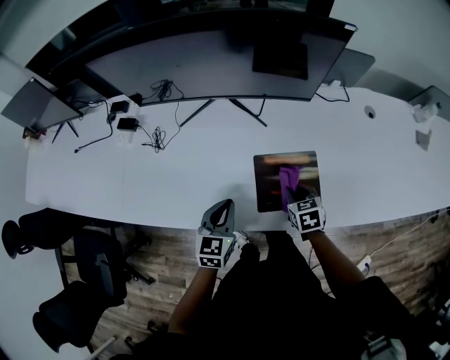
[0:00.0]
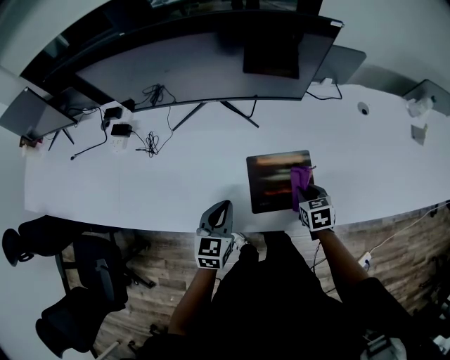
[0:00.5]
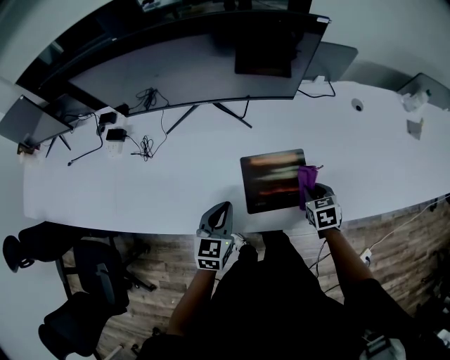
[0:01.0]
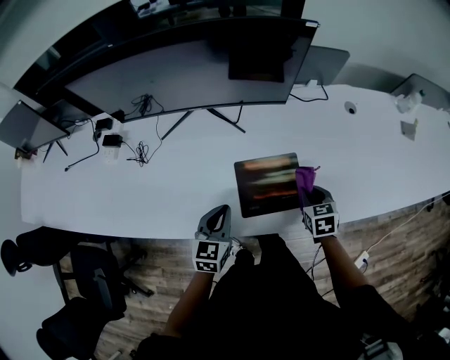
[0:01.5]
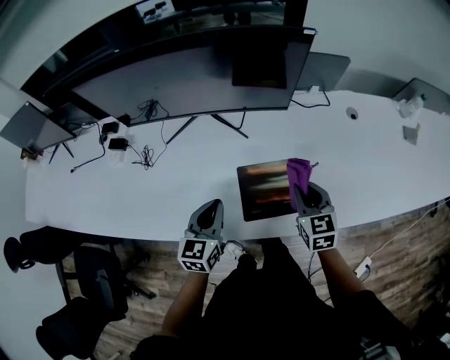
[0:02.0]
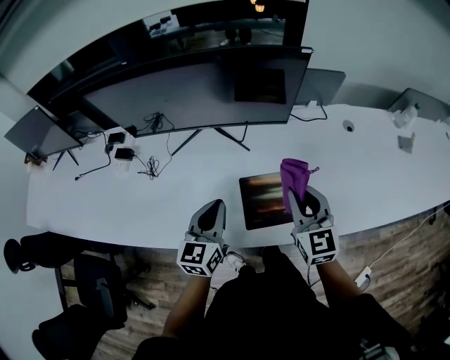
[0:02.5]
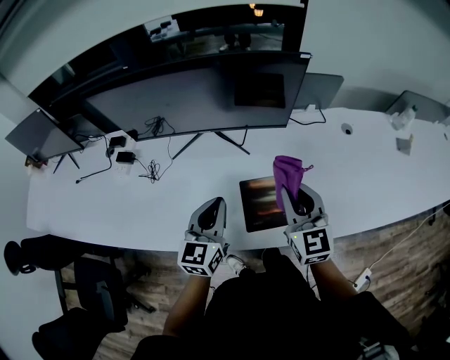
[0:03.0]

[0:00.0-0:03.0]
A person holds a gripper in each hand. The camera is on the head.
0:00.0 to 0:01.5: The right gripper heads to the right, covering about 10 cm.
0:01.5 to 0:03.0: The right gripper shifts about 25 cm upward and to the left, and points its fingers approximately 40 degrees further upward. Meanwhile the left gripper travels upward by about 15 cm.

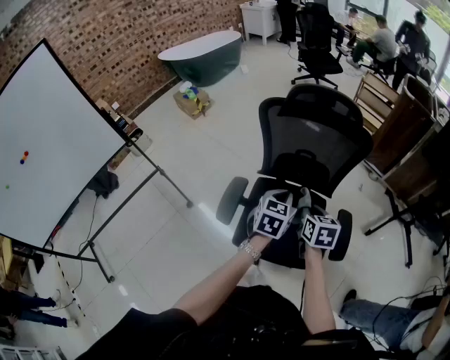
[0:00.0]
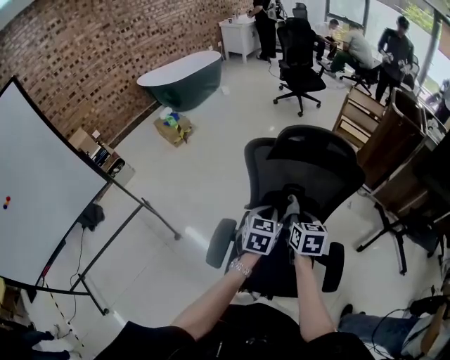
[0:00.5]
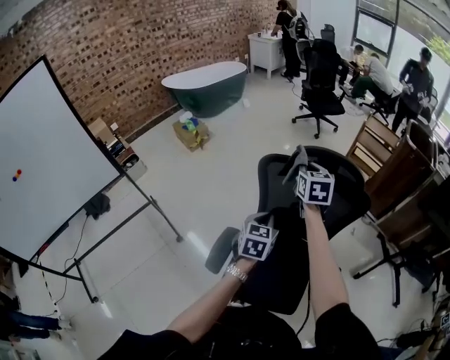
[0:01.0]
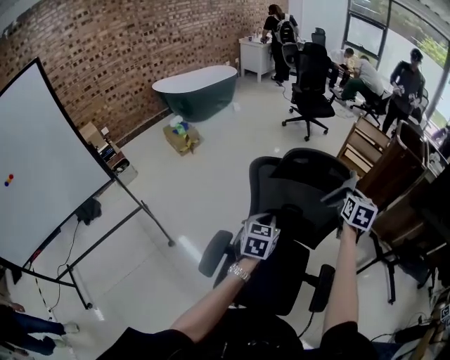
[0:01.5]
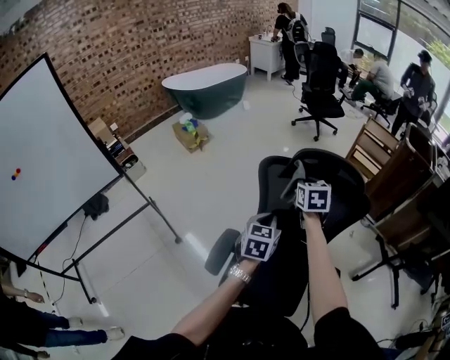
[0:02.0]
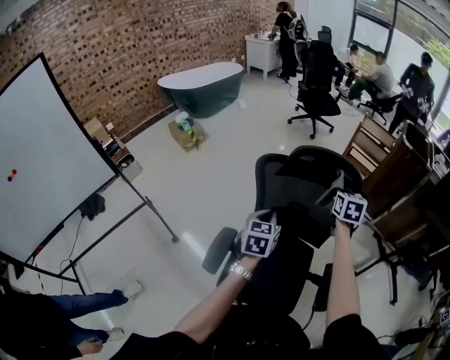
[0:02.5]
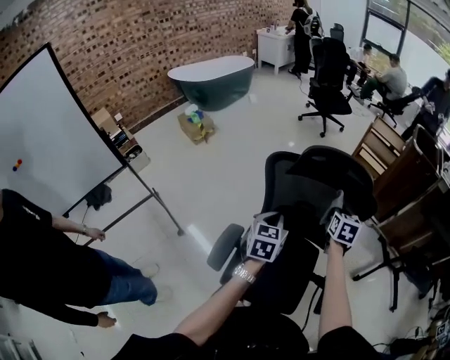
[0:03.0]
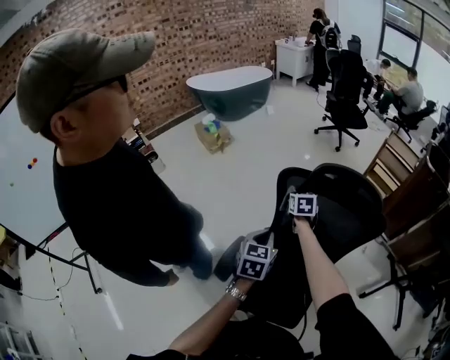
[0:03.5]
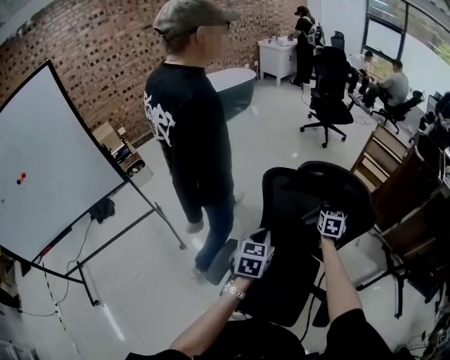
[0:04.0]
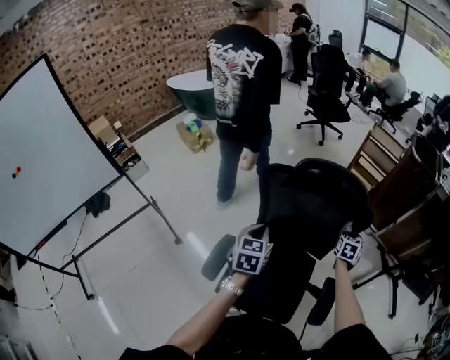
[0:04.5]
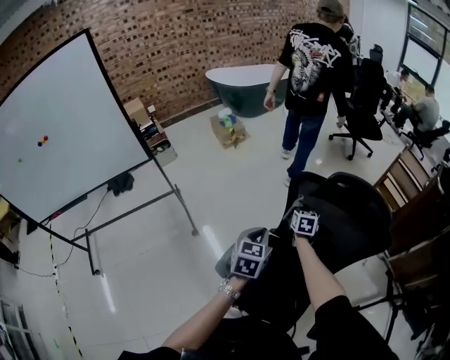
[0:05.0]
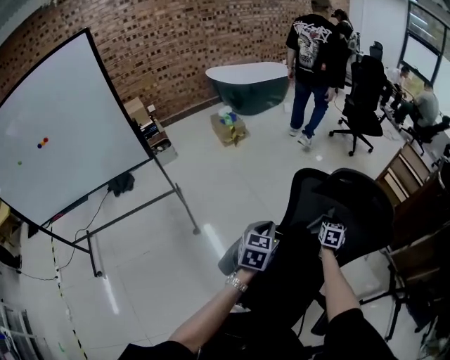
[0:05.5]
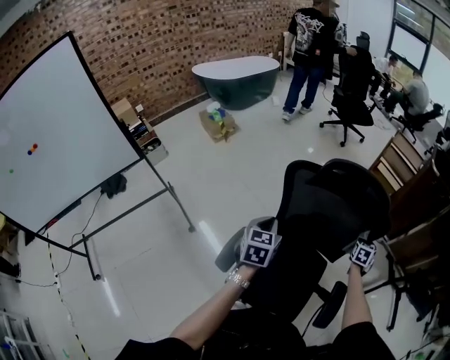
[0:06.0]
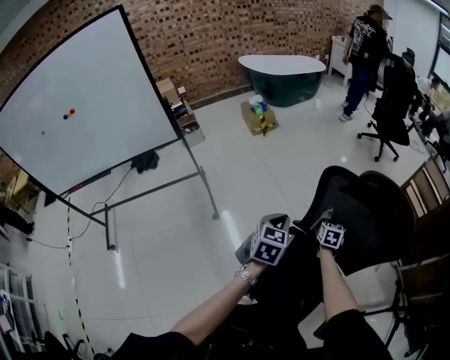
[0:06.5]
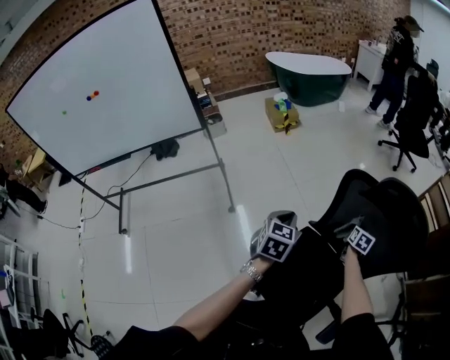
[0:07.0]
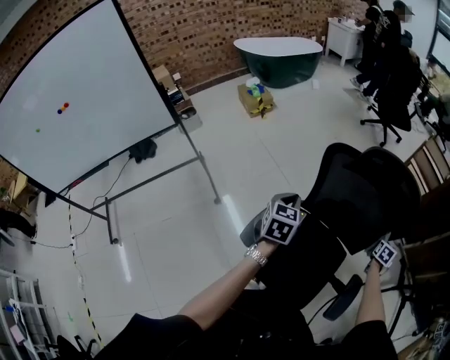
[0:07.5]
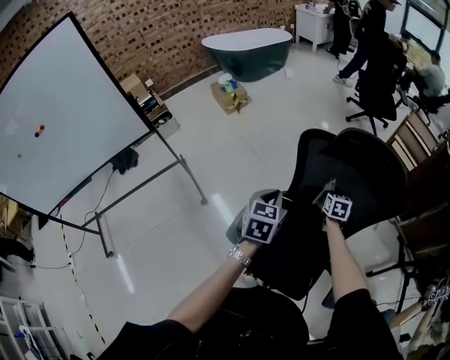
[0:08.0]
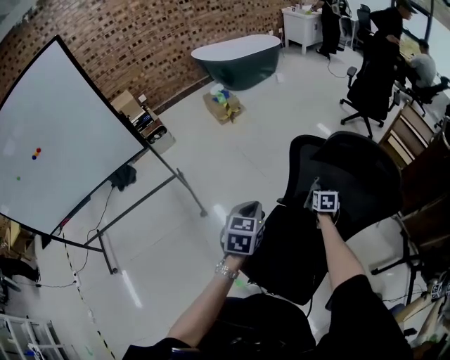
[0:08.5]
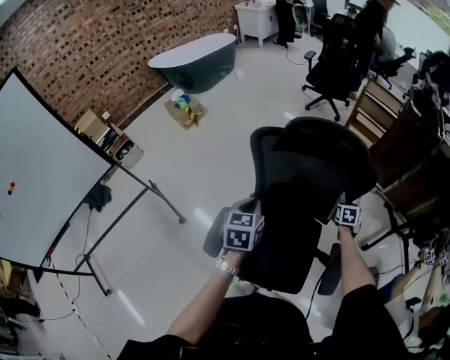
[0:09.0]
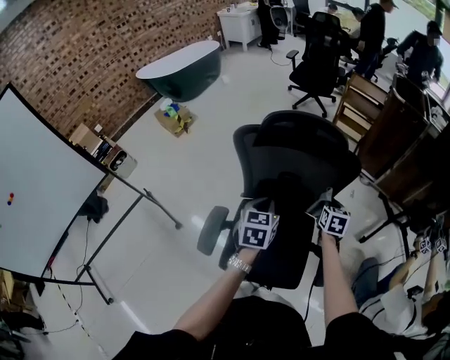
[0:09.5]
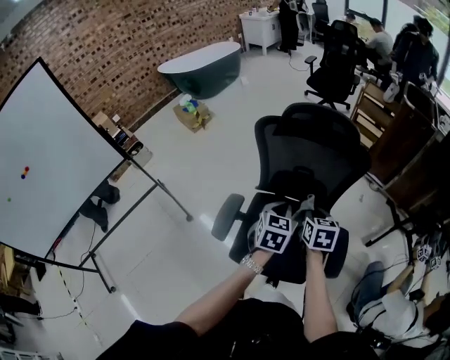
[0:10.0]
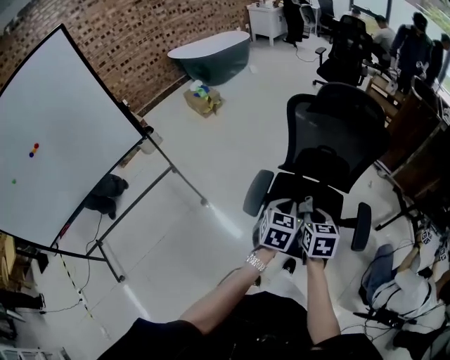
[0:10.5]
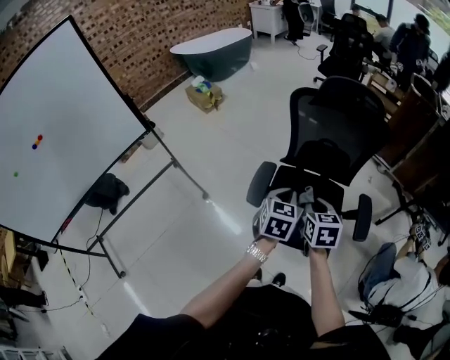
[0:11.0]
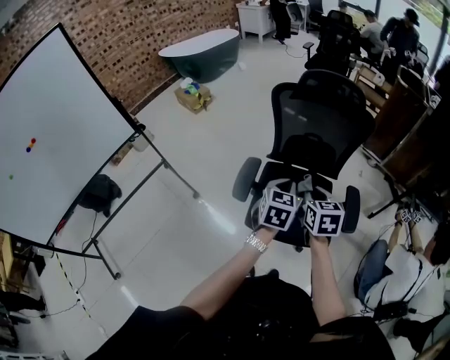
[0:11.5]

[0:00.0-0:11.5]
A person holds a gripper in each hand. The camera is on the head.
0:00.0 to 0:02.0: The left gripper heads forward and to the left, covering roughly 15 cm; the right gripper is displaced forward and upward by approximately 30 cm, and turns by roughly 20 degrees.
0:02.0 to 0:04.0: The right gripper swings left and right, about 25 cm each way, with 2 reversals.
0:04.0 to 0:06.0: The left gripper travels to the left and back again, some 5 cm each way. Meanwhile the right gripper swings left and right, some 40 cm each way, with 2 reversals.
0:07.5 to 0:09.5: The right gripper swings left and right, approximately 30 cm each way, with 2 reversals; the left gripper goes roughly 20 cm to the right.
0:09.5 to 0:11.5: The left gripper moves backward, some 20 cm, while the right gripper goes about 35 cm backward, to the left and upward.

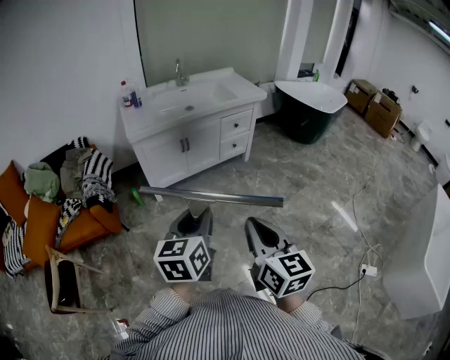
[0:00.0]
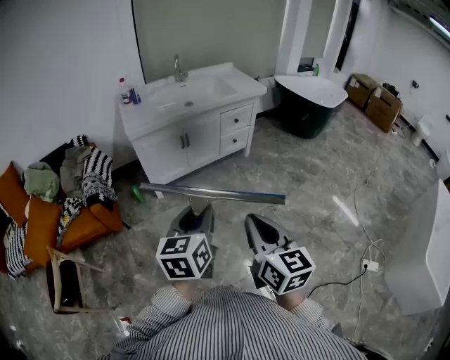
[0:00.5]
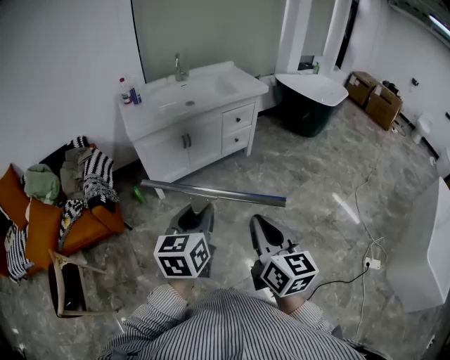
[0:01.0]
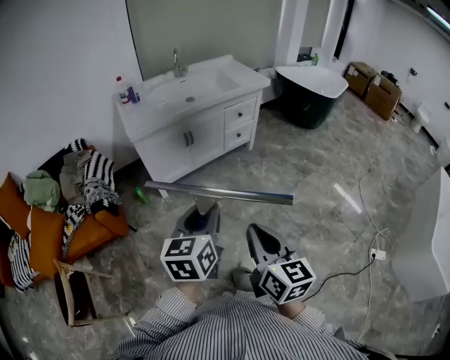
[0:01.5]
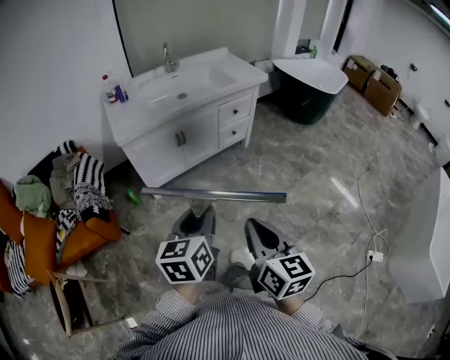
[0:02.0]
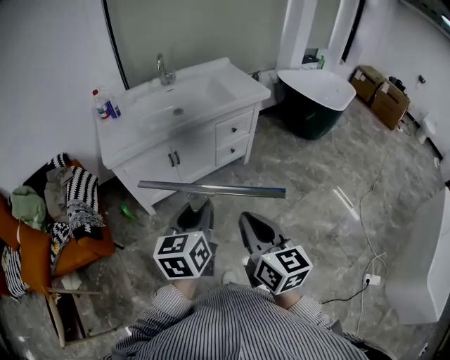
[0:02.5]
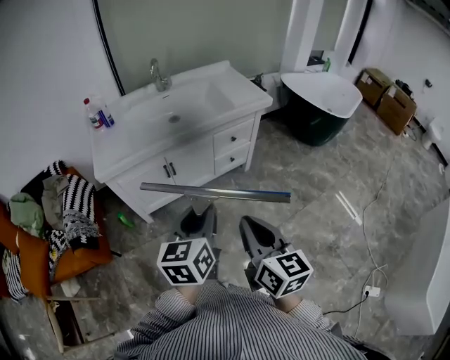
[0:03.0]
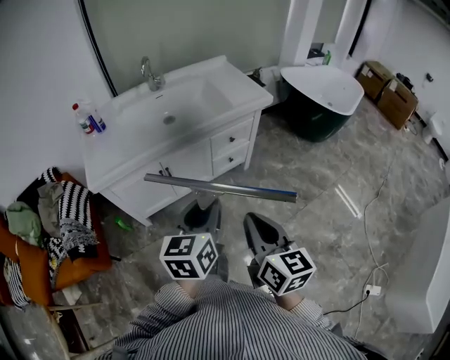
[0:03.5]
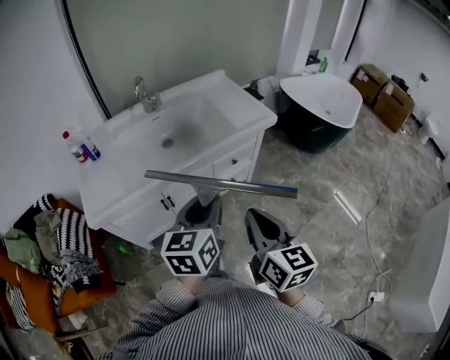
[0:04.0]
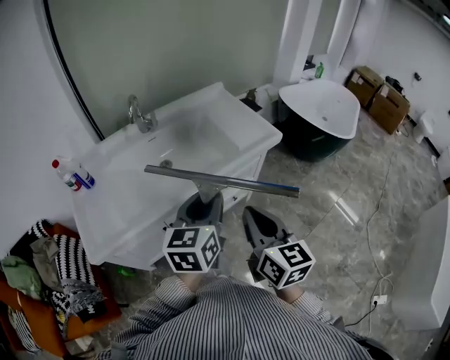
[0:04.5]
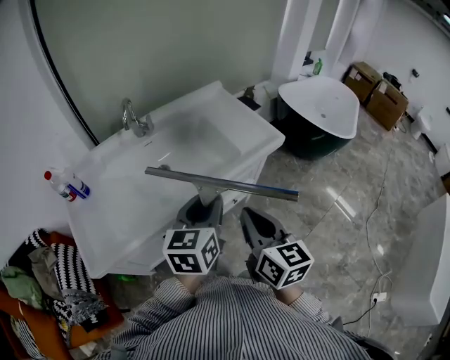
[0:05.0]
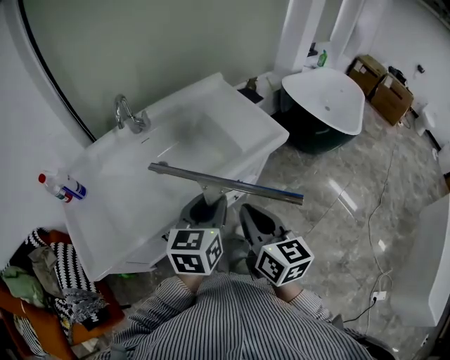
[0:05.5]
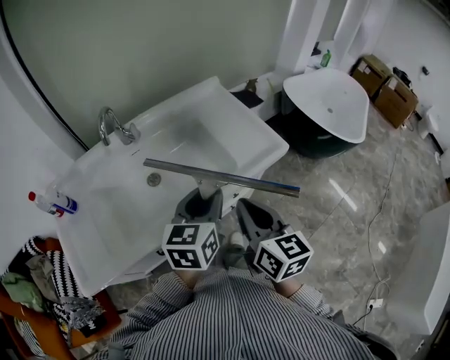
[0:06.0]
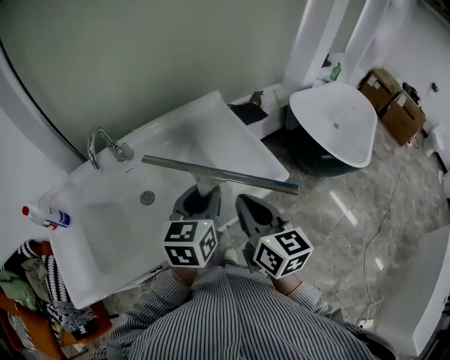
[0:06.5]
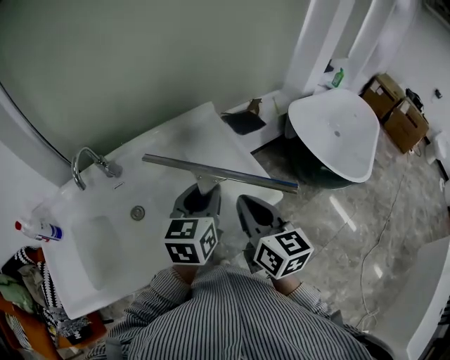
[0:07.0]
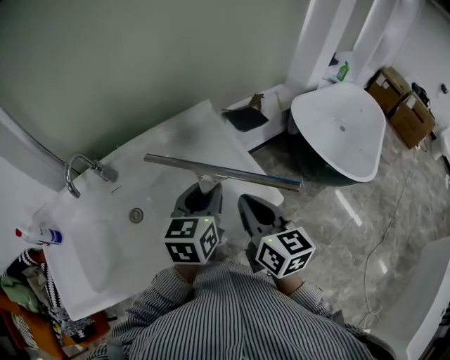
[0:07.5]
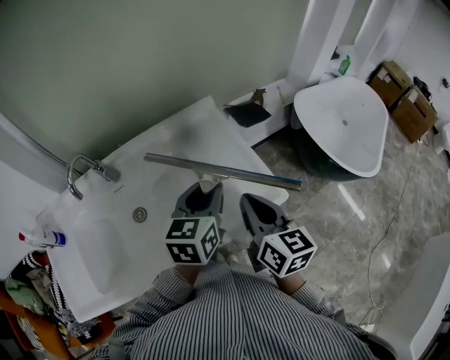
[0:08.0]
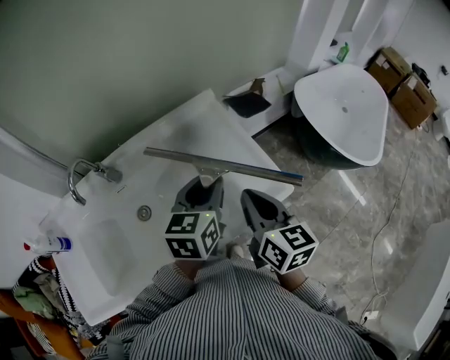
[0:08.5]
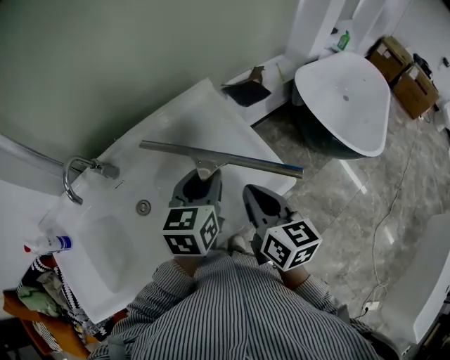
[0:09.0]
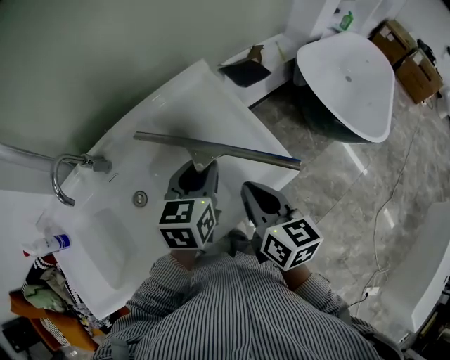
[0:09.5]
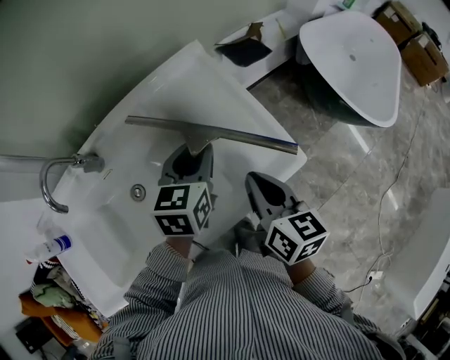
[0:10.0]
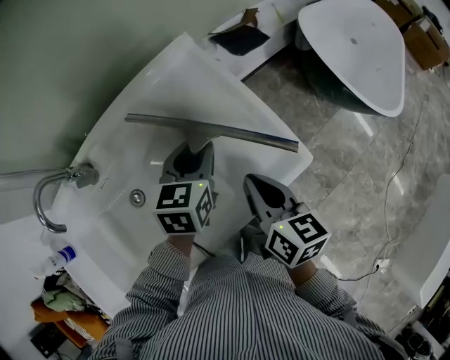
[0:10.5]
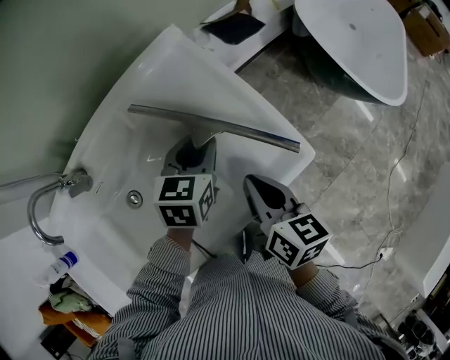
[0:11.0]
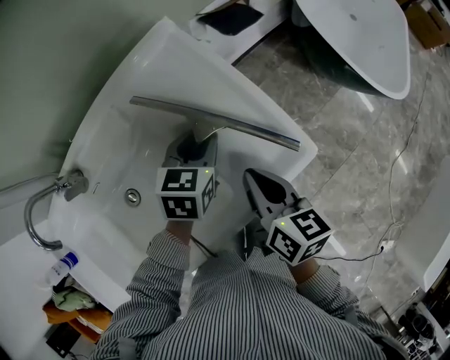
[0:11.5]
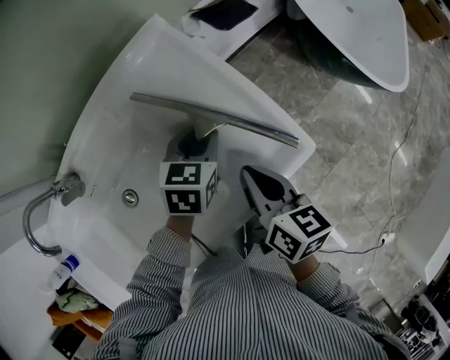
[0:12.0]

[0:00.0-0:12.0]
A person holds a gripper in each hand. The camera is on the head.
0:00.0 to 0:02.0: The two grippers go roughly 10 cm forward.
0:02.0 to 0:04.0: The pair of grippers is taken forward, approximately 50 cm.
0:04.0 to 0:06.0: The two grippers go approximately 30 cm forward.
0:06.0 to 0:08.0: The grippers both shift forward and to the right by some 25 cm.
0:08.0 to 0:10.0: The right gripper is displaced downward by roughly 5 cm; the left gripper moves forward and downward, some 10 cm.
0:10.0 to 0:12.0: The left gripper heads downward and to the right, covering approximately 15 cm, and changes its angle by roughly 20 degrees. Meanwhile the right gripper travels downward by about 5 cm.
